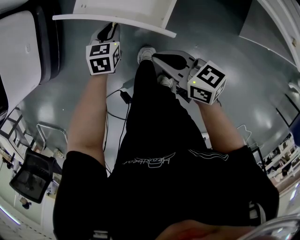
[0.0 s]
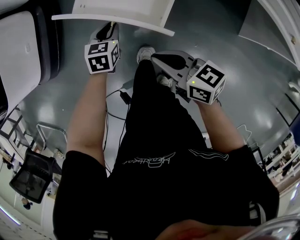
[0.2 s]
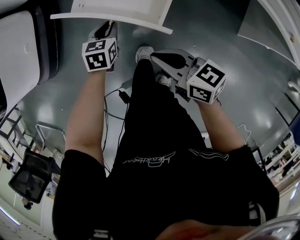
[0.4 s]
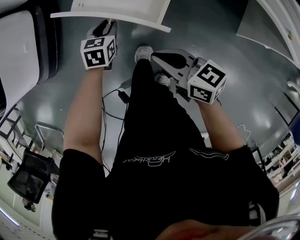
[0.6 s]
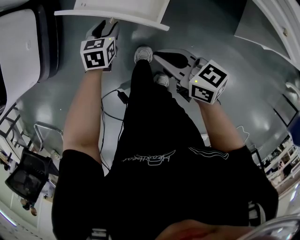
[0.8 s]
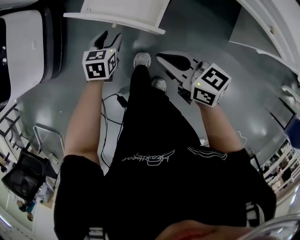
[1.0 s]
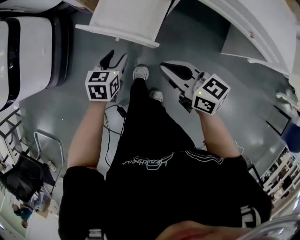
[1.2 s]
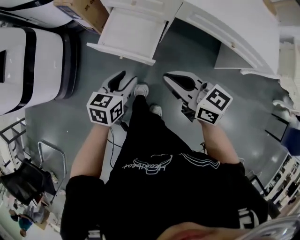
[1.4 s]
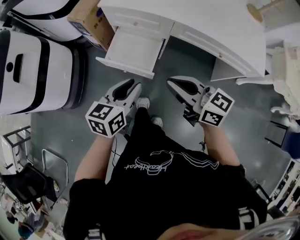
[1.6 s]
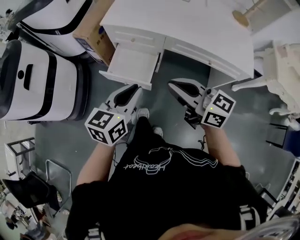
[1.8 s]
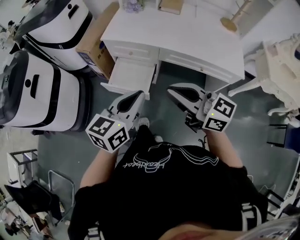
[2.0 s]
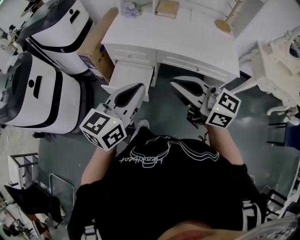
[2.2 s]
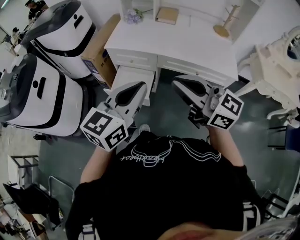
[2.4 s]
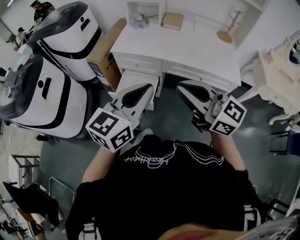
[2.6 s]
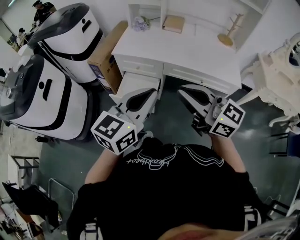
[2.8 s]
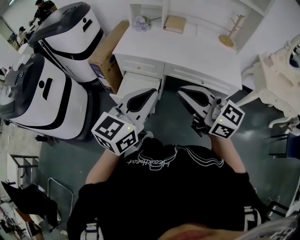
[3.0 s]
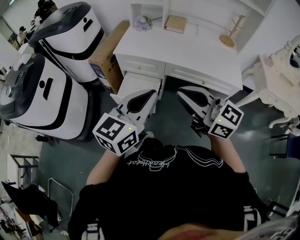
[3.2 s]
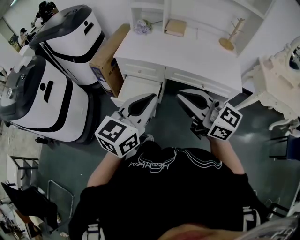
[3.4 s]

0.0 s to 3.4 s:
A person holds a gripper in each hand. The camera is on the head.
0.0 to 1.6 s: Both grippers move upward, approximately 40 cm. The right gripper changes its angle by some 20 degrees. The left gripper rotates roughly 30 degrees, and opens and closes again.
1.6 to 3.4 s: The grippers both shift upward by approximately 25 cm. The left gripper swivels some 30 degrees, and closes. Meanwhile the right gripper rotates some 20 degrees.

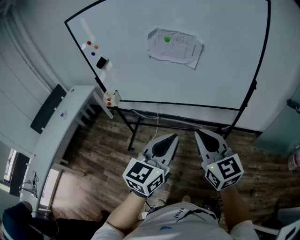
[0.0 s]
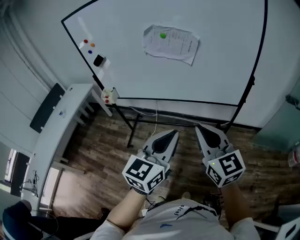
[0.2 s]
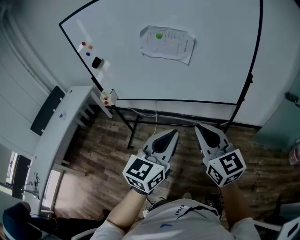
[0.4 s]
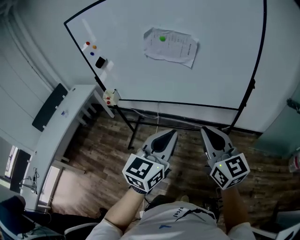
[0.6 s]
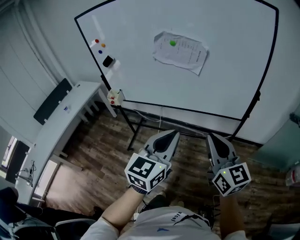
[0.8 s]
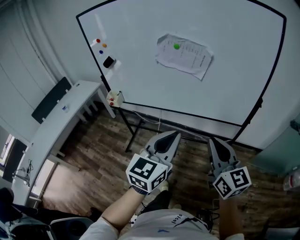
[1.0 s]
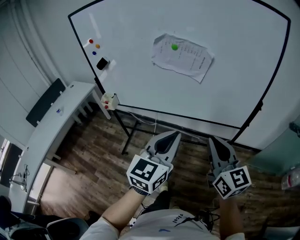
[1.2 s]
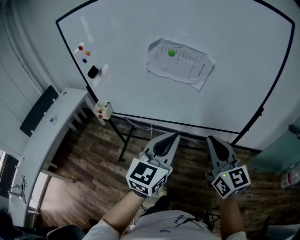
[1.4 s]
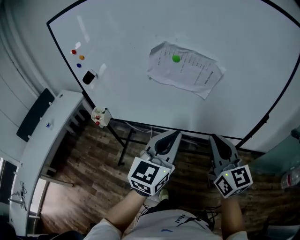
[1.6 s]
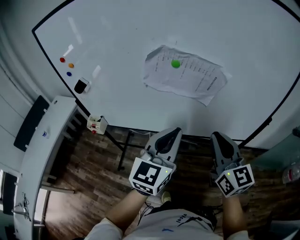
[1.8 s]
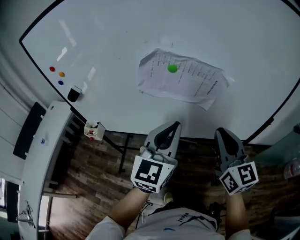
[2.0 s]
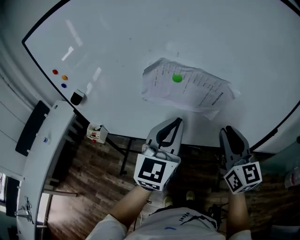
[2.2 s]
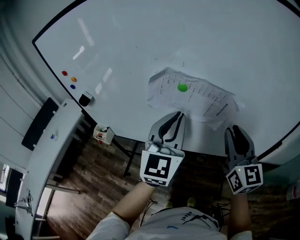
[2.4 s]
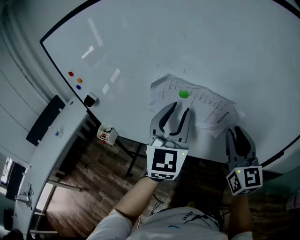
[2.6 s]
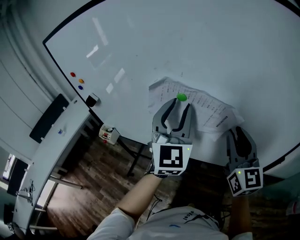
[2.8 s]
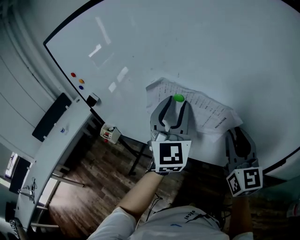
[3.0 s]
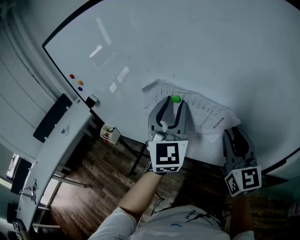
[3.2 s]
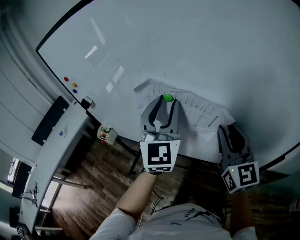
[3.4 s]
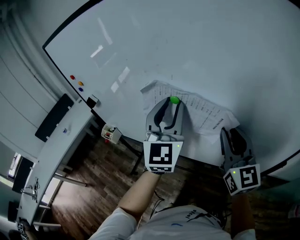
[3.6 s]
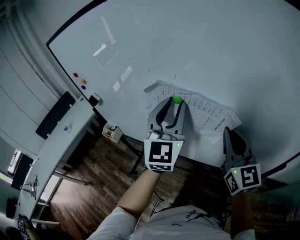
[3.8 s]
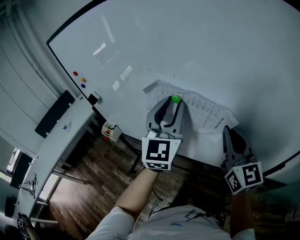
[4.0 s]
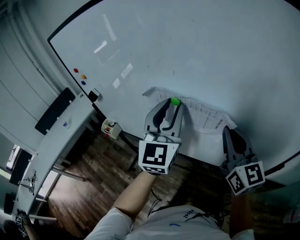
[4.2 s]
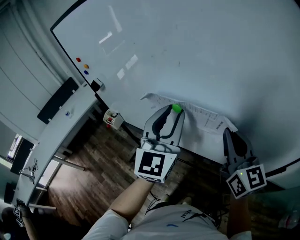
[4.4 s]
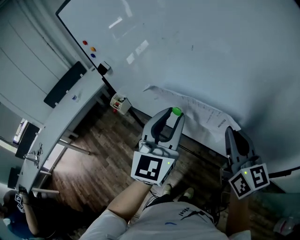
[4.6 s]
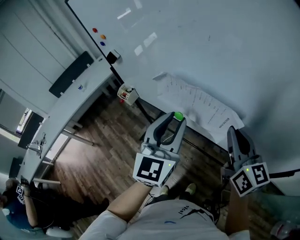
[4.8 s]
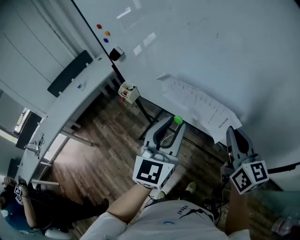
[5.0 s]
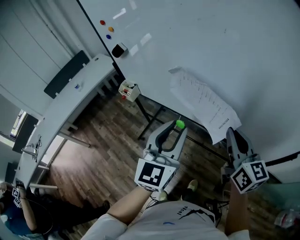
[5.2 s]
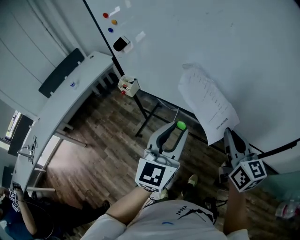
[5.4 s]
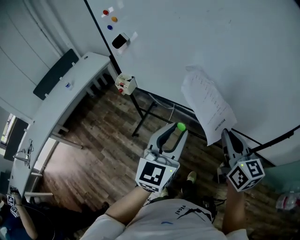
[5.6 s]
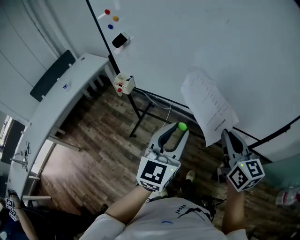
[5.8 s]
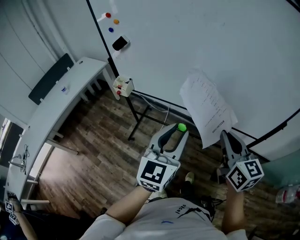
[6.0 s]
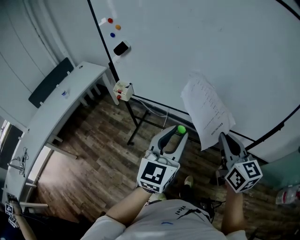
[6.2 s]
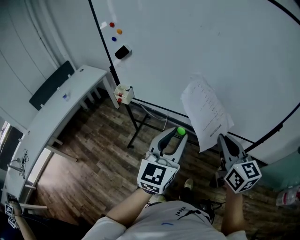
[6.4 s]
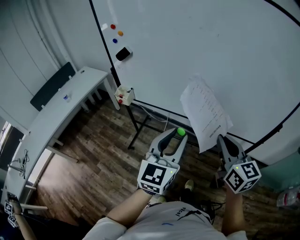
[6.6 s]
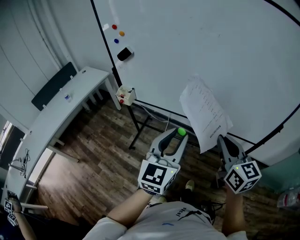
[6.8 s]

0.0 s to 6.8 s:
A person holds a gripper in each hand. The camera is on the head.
0.0 to 1.4 s: The two grippers go some 15 cm forward.
1.4 to 2.8 s: Both grippers travel together forward, roughly 30 cm. The right gripper opens. Meanwhile the left gripper rotates some 40 degrees, and opens up.
2.8 to 4.0 s: The right gripper closes its fingers.
4.0 to 5.4 s: The right gripper is displaced backward, to the left and downward by approximately 25 cm, and rotates some 20 degrees. The left gripper travels backward, downward and to the left by about 30 cm.
5.4 to 6.8 s: The grippers both shift backward by some 5 cm.

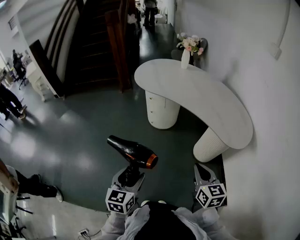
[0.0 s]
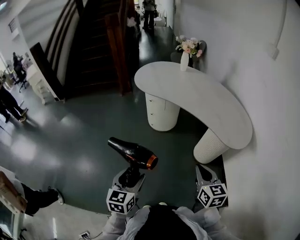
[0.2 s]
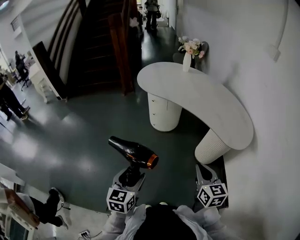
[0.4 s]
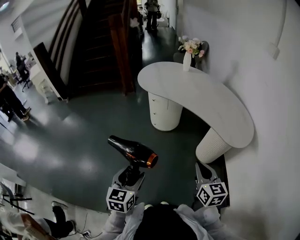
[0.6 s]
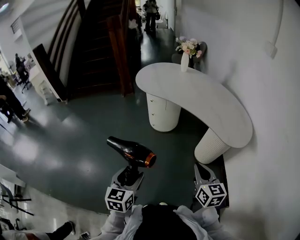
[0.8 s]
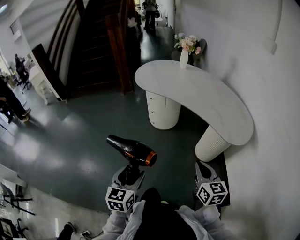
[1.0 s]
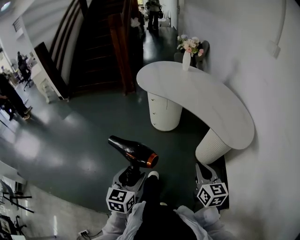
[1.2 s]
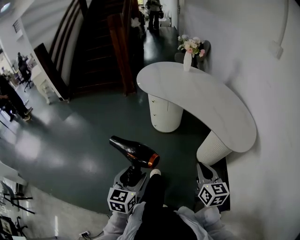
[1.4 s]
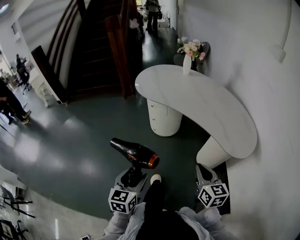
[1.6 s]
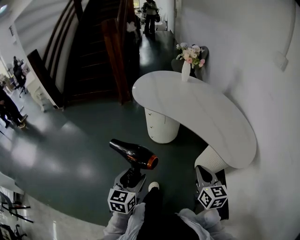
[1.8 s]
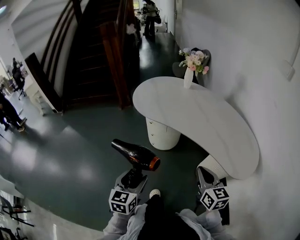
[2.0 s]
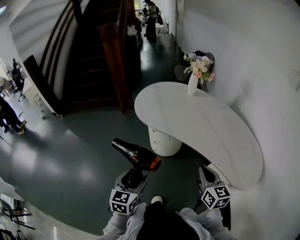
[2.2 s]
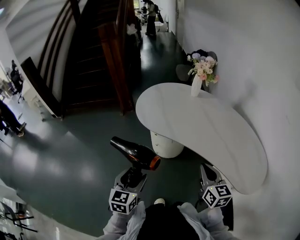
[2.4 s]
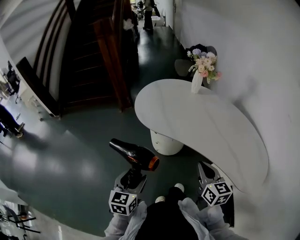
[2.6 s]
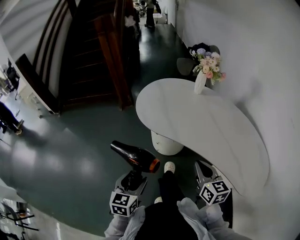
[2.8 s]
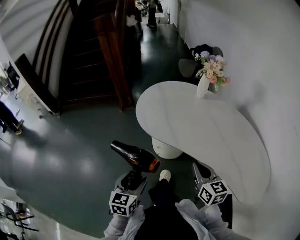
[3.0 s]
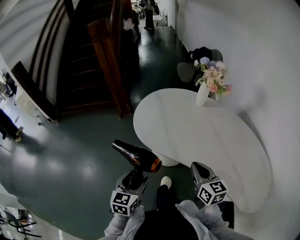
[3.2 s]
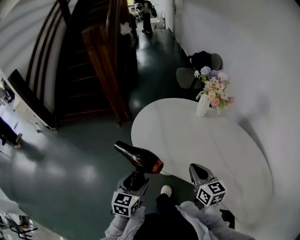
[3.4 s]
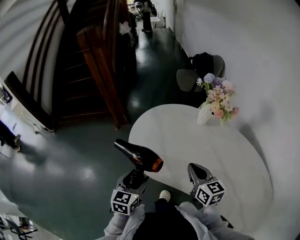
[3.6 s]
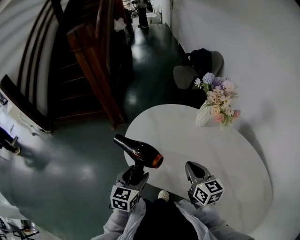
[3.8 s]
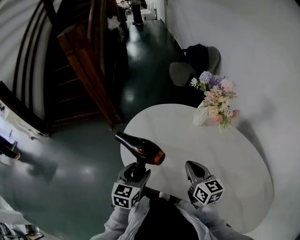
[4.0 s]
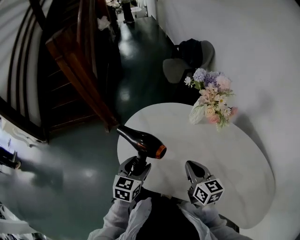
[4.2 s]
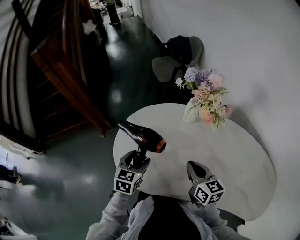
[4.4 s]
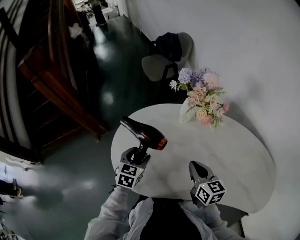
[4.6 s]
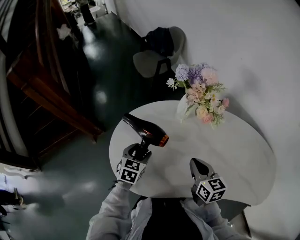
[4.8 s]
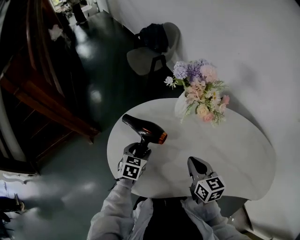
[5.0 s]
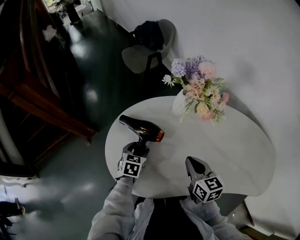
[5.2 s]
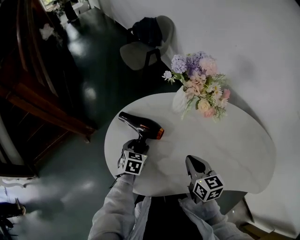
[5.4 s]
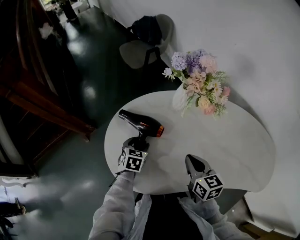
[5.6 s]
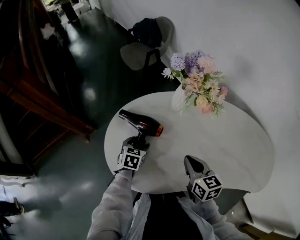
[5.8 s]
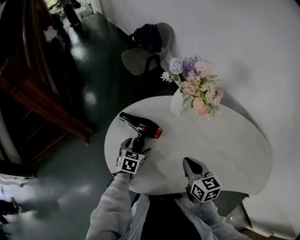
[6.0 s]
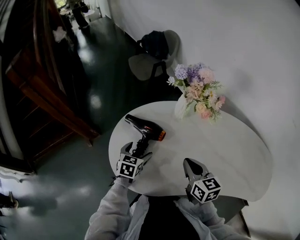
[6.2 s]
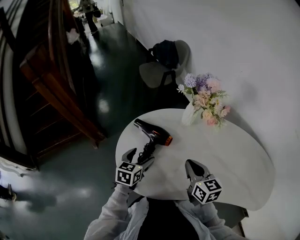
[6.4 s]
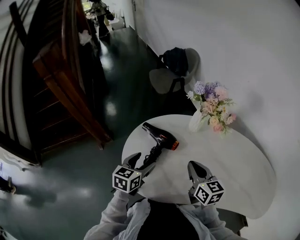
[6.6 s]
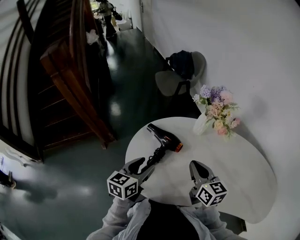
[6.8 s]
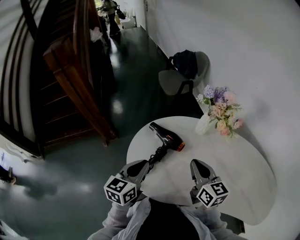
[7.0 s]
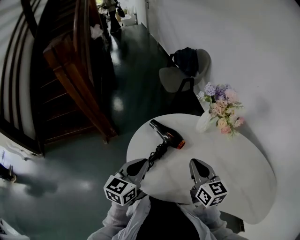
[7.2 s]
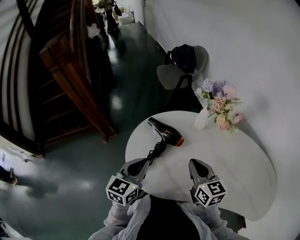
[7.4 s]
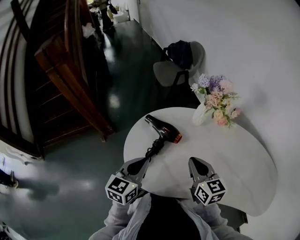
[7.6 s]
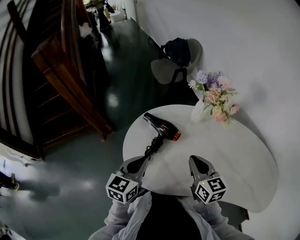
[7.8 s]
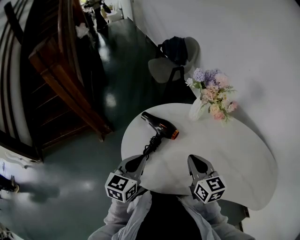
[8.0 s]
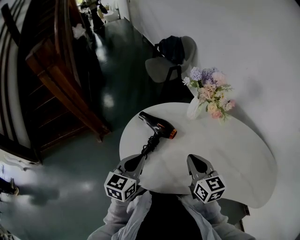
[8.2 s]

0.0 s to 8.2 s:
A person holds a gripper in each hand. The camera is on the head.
0.0 to 1.6 s: The two grippers go some 5 cm forward.
1.6 to 3.2 s: Both grippers are carried forward, about 50 cm.
3.2 to 5.0 s: The left gripper changes place by about 50 cm, and swivels roughly 40 degrees. Meanwhile the right gripper shifts by some 25 cm, and turns by approximately 30 degrees.
5.0 to 6.6 s: The left gripper shifts roughly 15 cm upward and backward, and rotates approximately 20 degrees; the right gripper heads to the left and upward, covering some 5 cm.
6.6 to 8.2 s: The left gripper shifts by some 5 cm, and closes its fingers.

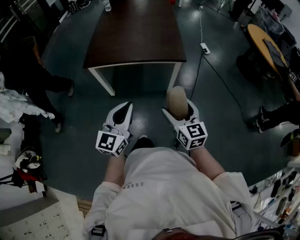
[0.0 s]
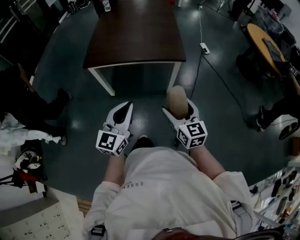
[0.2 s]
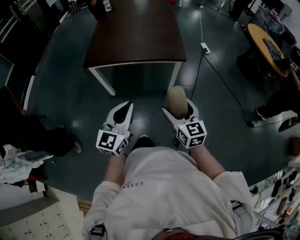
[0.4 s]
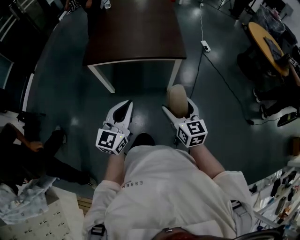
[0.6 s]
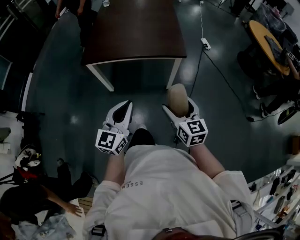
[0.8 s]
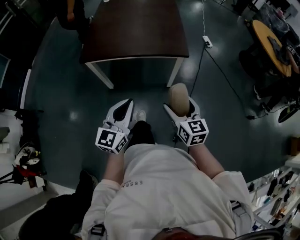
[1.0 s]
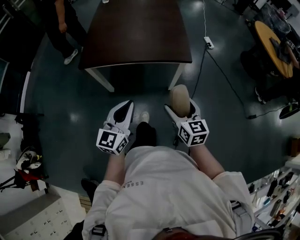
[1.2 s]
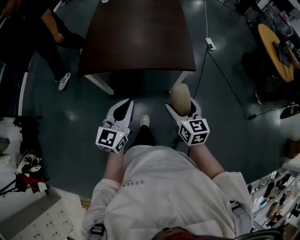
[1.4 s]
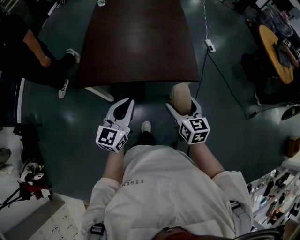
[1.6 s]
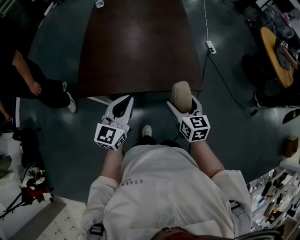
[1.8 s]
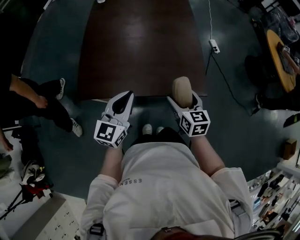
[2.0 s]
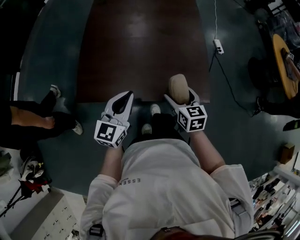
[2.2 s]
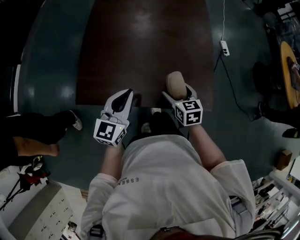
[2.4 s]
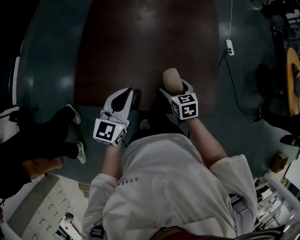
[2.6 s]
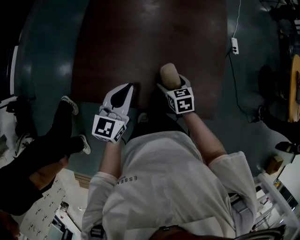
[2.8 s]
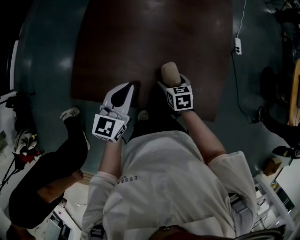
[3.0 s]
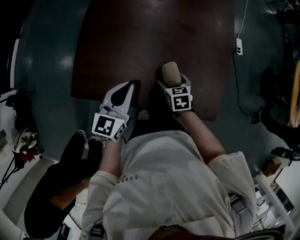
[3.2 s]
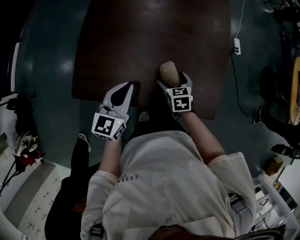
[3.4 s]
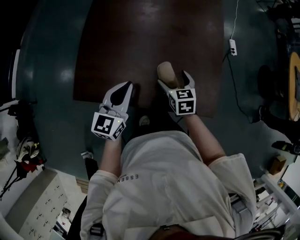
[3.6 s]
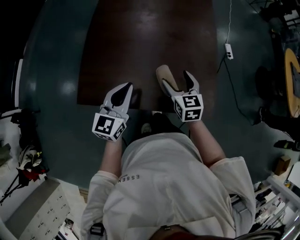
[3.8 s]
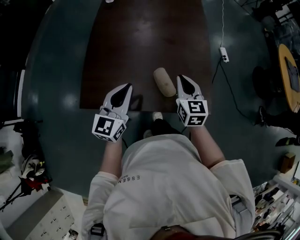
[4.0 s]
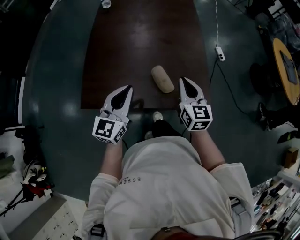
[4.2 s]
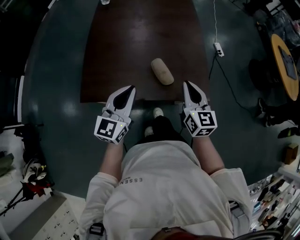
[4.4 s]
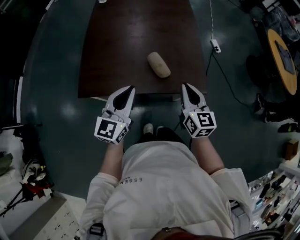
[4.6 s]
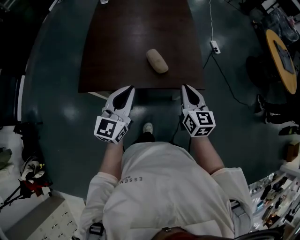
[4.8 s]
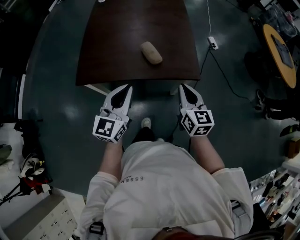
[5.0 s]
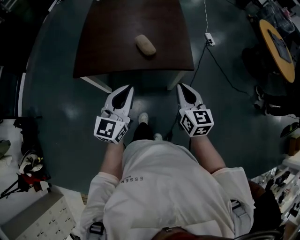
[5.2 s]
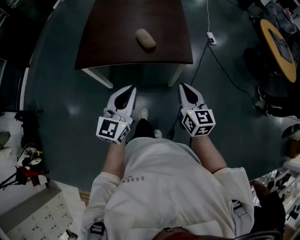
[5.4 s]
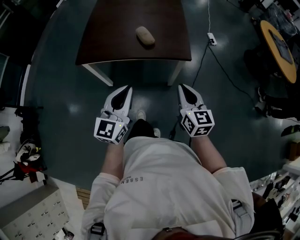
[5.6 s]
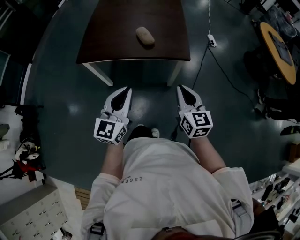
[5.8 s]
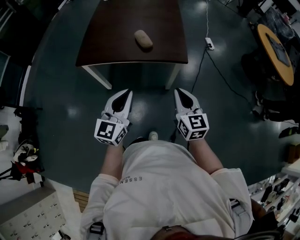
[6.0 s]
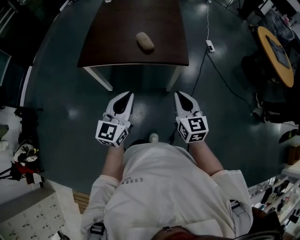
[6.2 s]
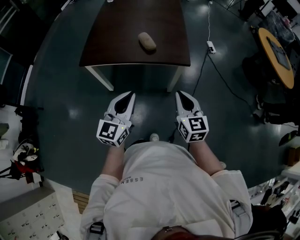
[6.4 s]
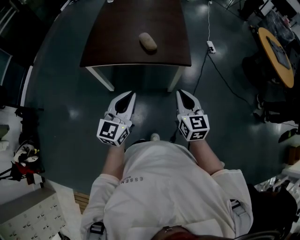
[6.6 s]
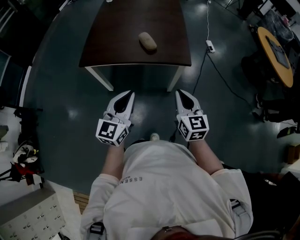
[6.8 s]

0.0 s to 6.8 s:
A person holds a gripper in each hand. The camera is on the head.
0.0 to 1.4 s: Both grippers travel together forward, approximately 15 cm.
1.4 to 2.8 s: The right gripper is displaced forward and downward by some 40 cm, and swivels roughly 30 degrees, while the left gripper moves forward, some 35 cm.
2.8 to 4.0 s: The right gripper heads upward, covering about 20 cm, rotates some 30 degrees, and closes its fingers. The left gripper goes about 10 cm upward.
4.0 to 5.4 s: The two grippers go about 35 cm backward and to the right.
5.4 to 6.8 s: The left gripper moves about 5 cm; the right gripper changes place by about 5 cm.
